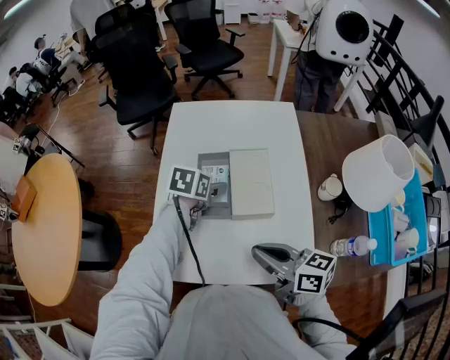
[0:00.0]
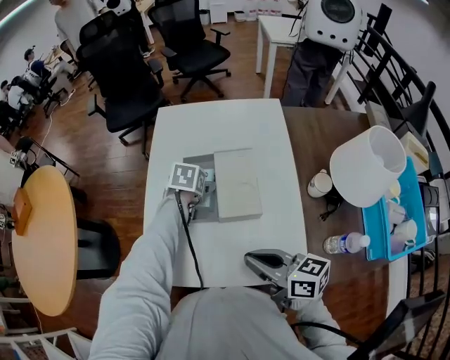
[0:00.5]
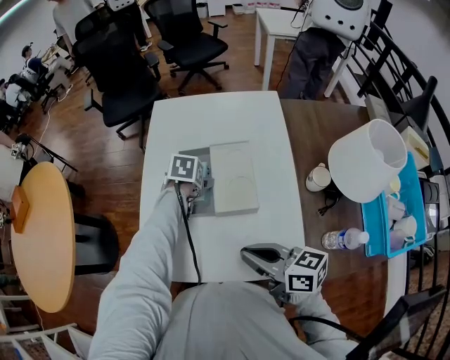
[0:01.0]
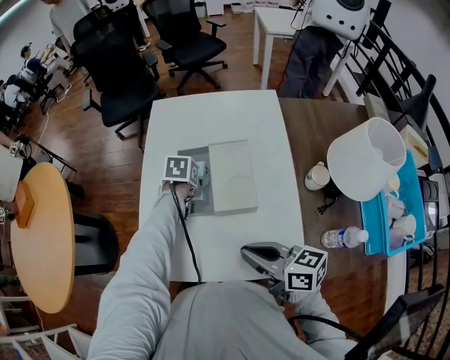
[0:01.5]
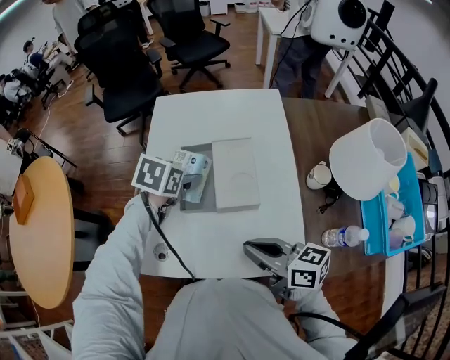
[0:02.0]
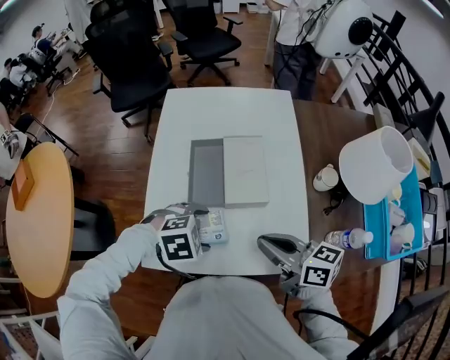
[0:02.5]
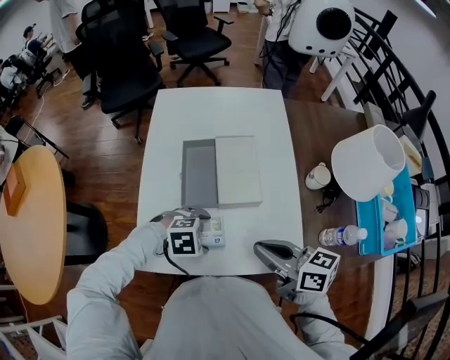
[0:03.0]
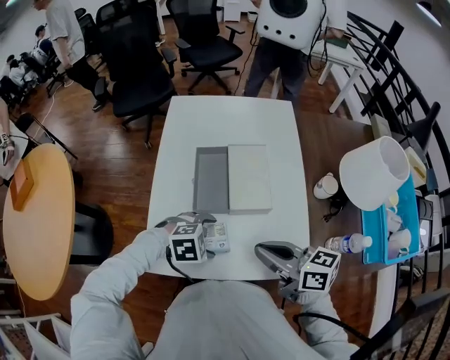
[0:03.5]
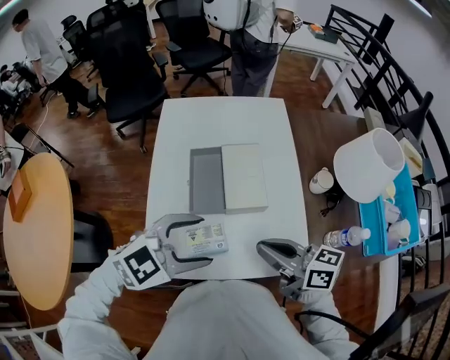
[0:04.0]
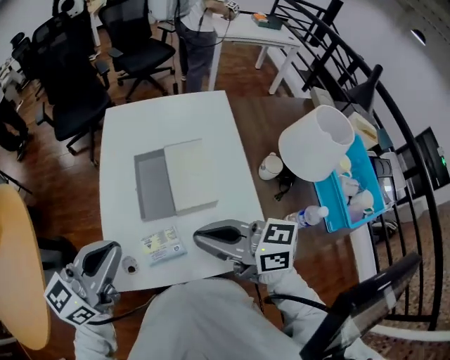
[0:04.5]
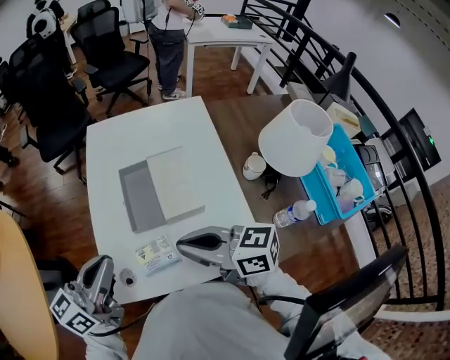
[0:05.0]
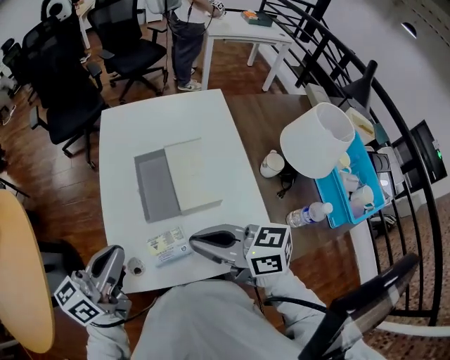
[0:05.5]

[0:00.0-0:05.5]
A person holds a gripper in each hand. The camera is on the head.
0:00.0 to 0:02.0: The left gripper heads upward, covering some 5 cm.
0:02.0 to 0:03.5: The left gripper shifts by approximately 25 cm, and twists approximately 50 degrees clockwise, seen from behind.
0:03.5 to 0:05.5: The right gripper changes place by about 10 cm; the left gripper travels upward by about 20 cm, points its fingers roughly 60 degrees further upward, and closes up.

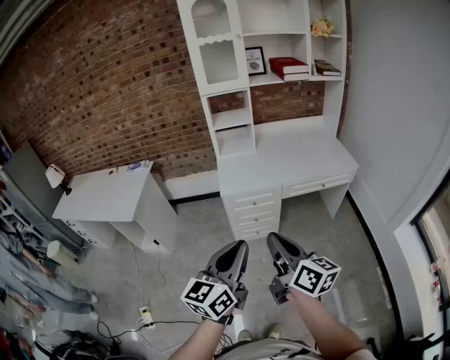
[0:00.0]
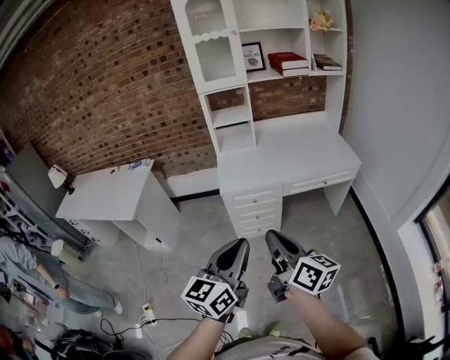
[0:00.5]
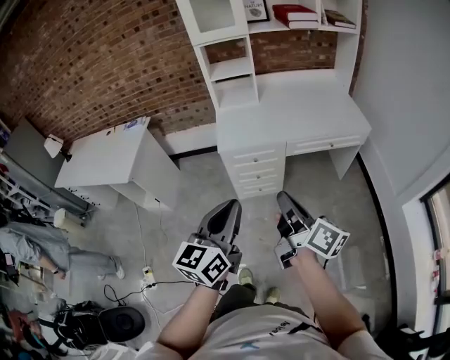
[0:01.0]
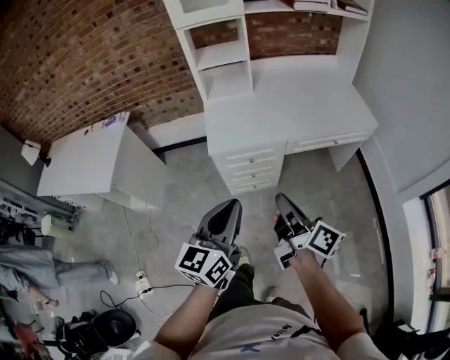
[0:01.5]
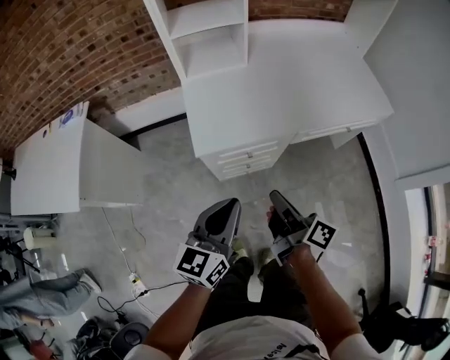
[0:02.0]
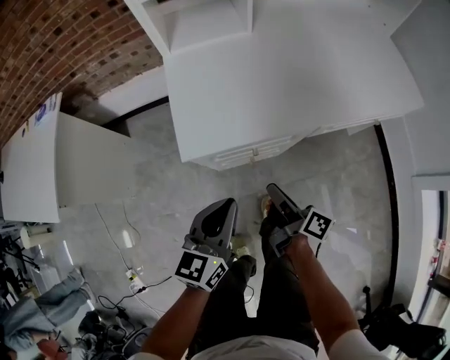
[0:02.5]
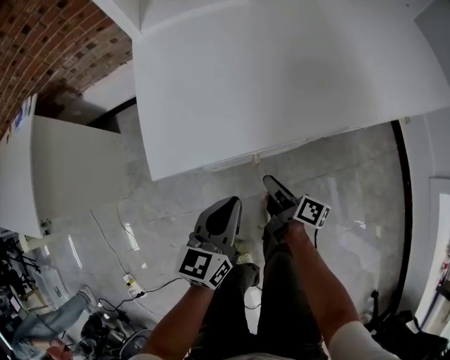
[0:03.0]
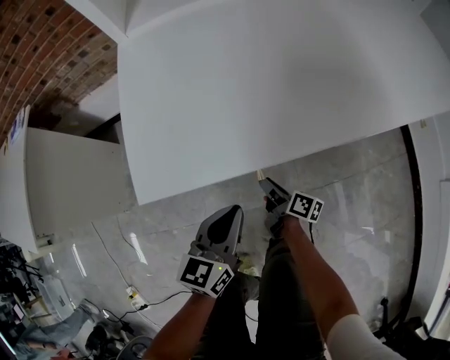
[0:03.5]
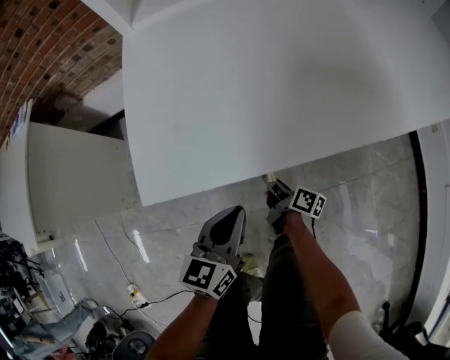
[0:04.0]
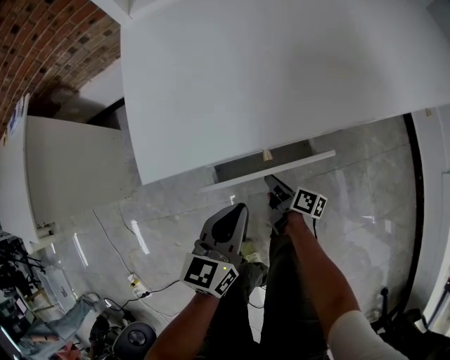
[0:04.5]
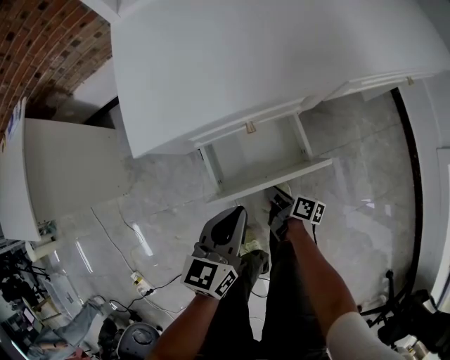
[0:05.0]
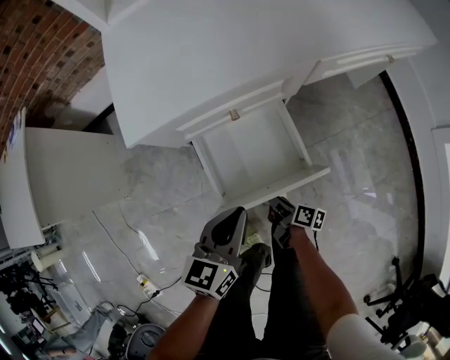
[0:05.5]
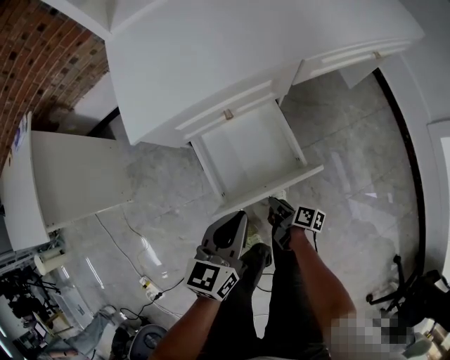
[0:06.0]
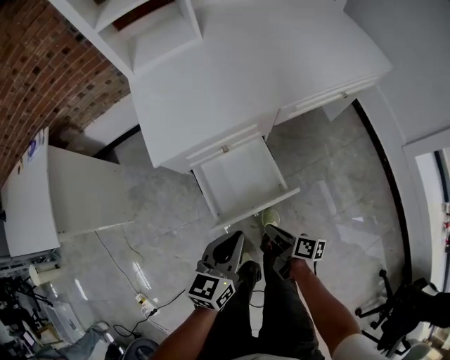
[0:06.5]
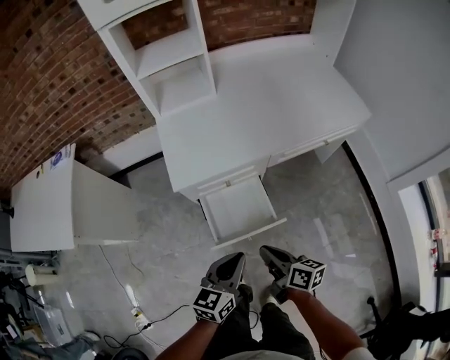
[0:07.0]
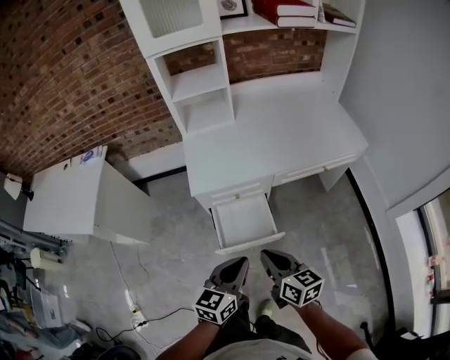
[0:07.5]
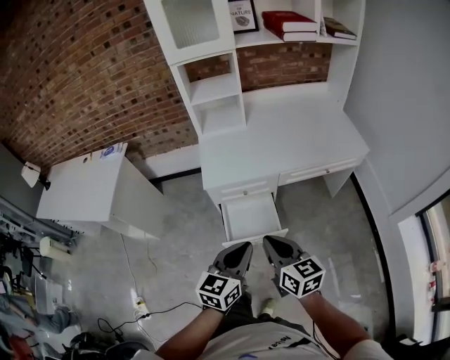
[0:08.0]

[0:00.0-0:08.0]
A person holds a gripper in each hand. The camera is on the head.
0:00.0 to 0:02.0: Both grippers travel together forward and downward, about 40 cm. The right gripper turns by about 30 degrees.
0:02.0 to 0:04.0: Both grippers move downward, about 40 cm.
0:04.0 to 0:06.0: The right gripper is displaced backward by some 25 cm; the left gripper shifts approximately 20 cm backward and upward.
0:06.0 to 0:08.0: The left gripper moves upward, about 35 cm. Meanwhile the right gripper moves upward, approximately 60 cm, and rolls counterclockwise, seen from behind, by roughly 70 degrees.

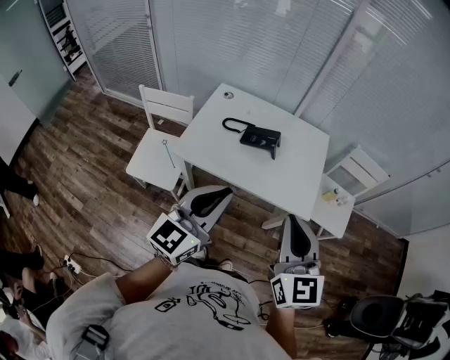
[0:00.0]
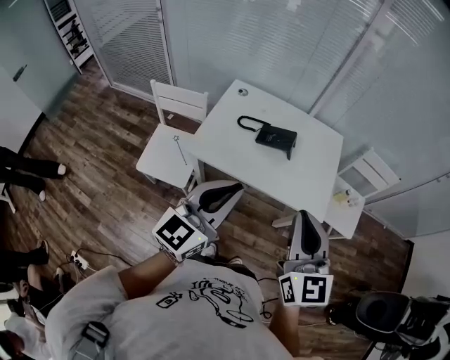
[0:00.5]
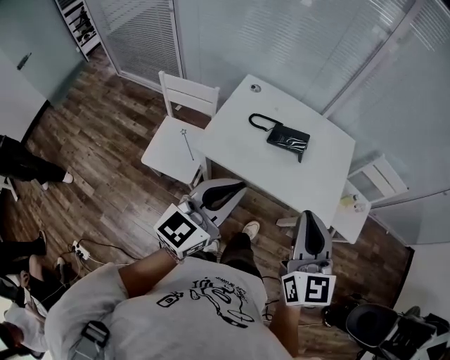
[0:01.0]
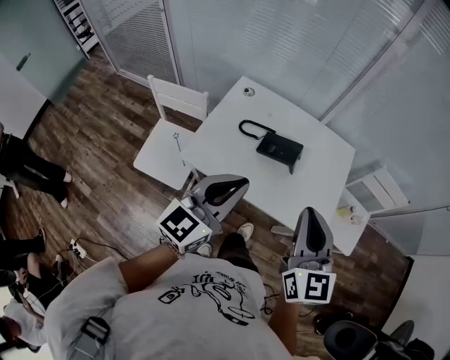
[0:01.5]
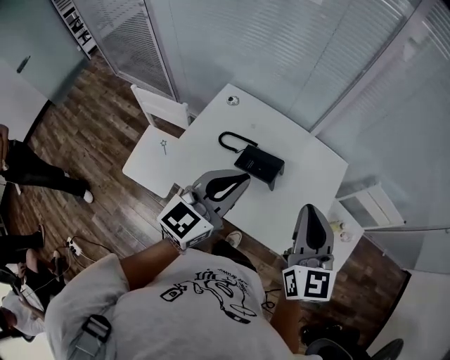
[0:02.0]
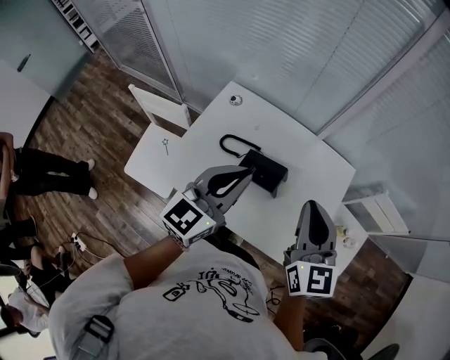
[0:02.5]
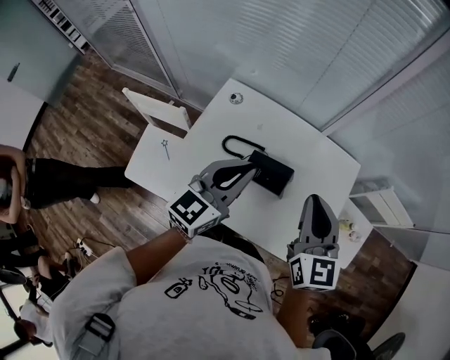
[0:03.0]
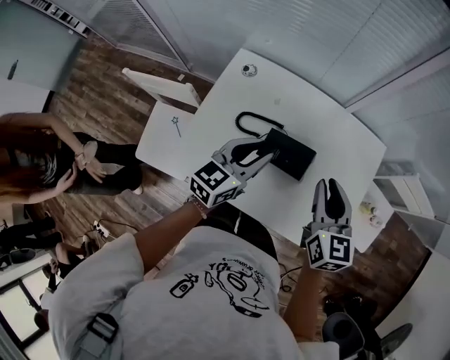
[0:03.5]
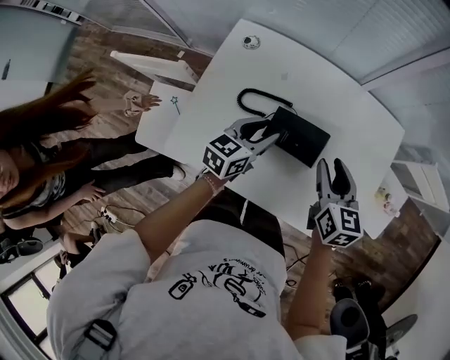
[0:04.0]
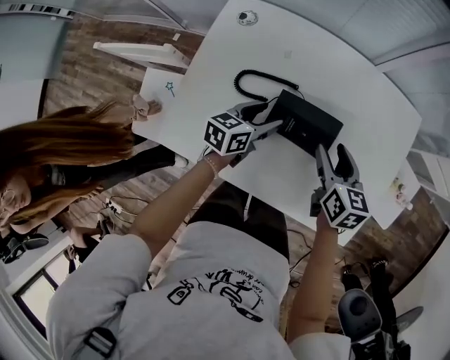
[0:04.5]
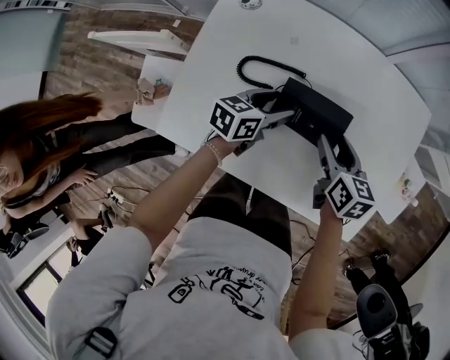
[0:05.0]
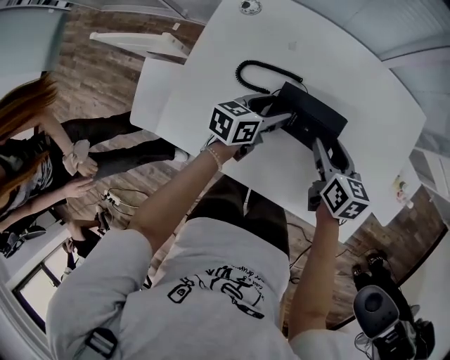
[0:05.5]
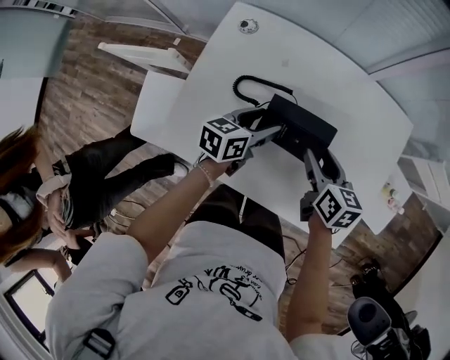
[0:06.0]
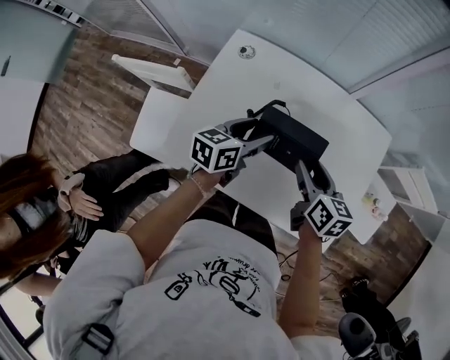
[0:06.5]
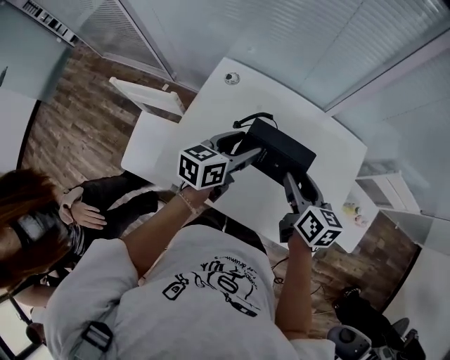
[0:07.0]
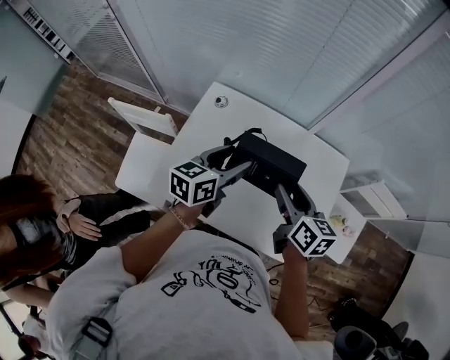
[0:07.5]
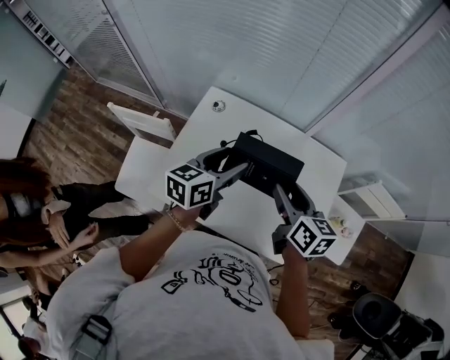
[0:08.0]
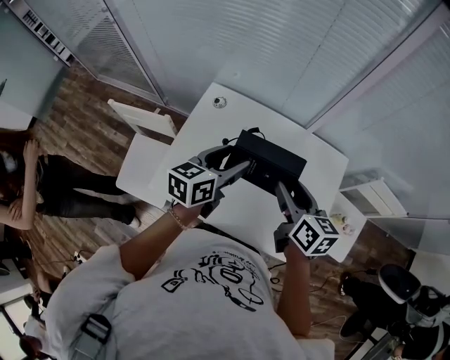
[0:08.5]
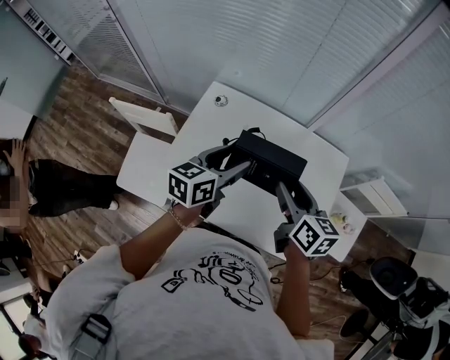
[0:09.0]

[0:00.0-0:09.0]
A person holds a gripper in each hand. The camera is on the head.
0:00.0 to 0:02.0: Both grippers travel together forward, roughly 30 cm.
0:02.0 to 0:04.5: Both grippers move downward and forward, some 40 cm. The left gripper turns by roughly 40 degrees, and opens up; the right gripper angles its fingers downward, by some 30 degrees, and opens.
0:04.5 to 0:07.0: Both grippers move upward, roughly 20 cm.
0:07.0 to 0:09.0: The two grippers go approximately 5 cm upward.

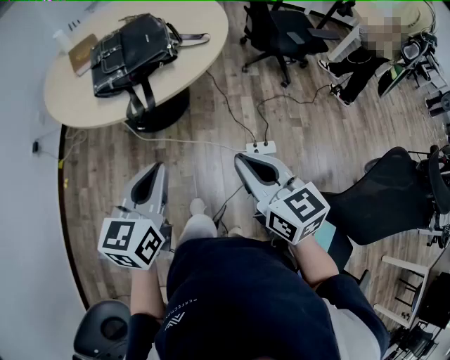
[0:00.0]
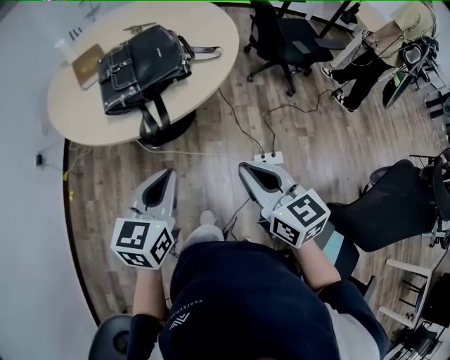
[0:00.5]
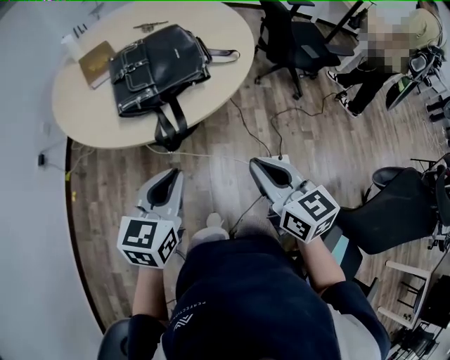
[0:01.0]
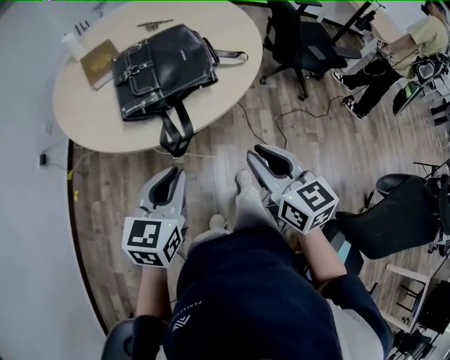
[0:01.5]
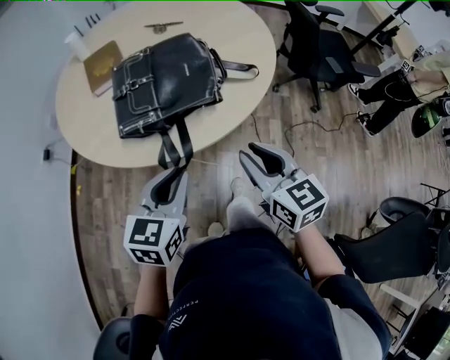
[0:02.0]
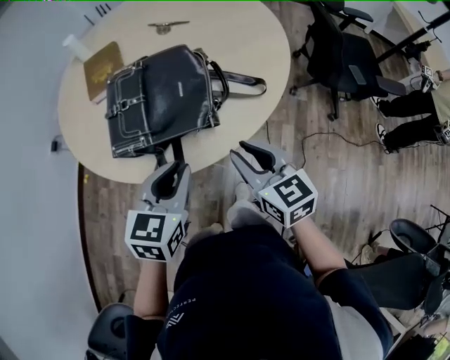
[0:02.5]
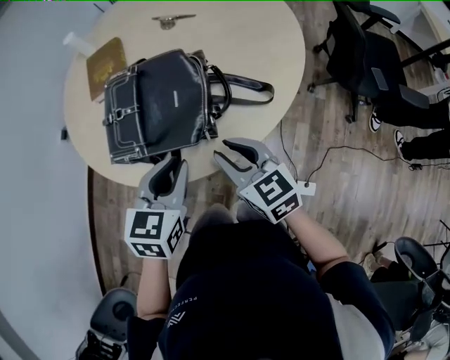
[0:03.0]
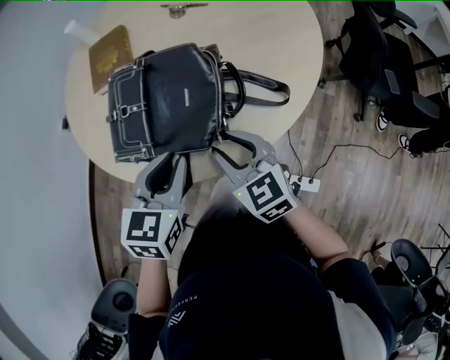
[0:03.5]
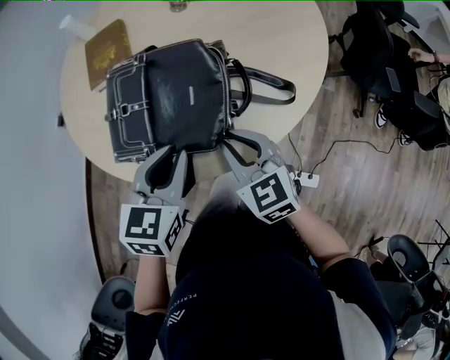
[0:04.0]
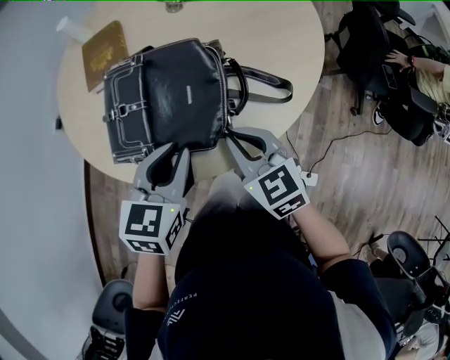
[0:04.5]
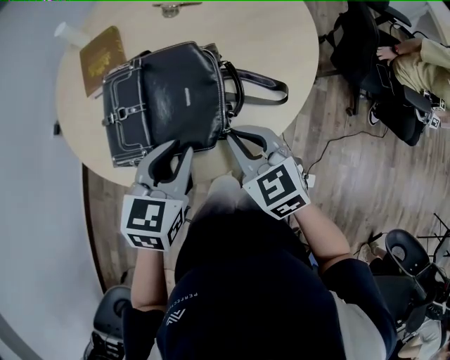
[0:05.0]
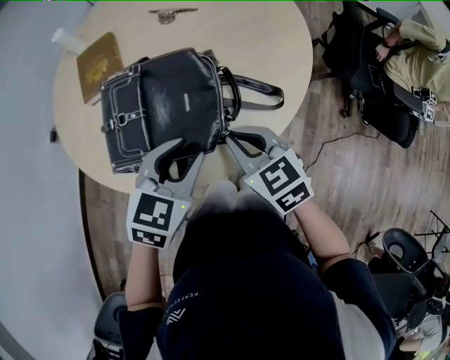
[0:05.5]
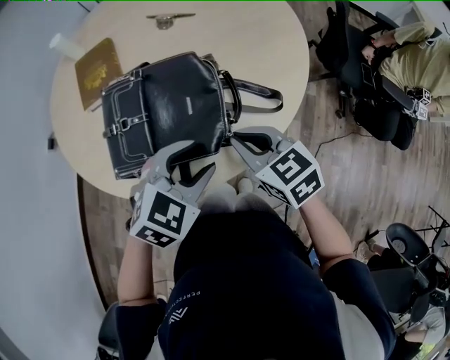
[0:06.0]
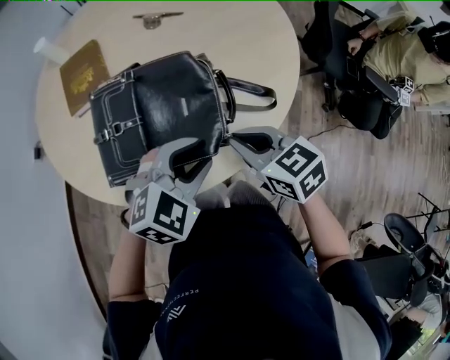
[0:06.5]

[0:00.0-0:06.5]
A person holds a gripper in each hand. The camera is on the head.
0:00.0 to 0:02.0: Both grippers travel together forward, roughly 20 cm. The right gripper opens its fingers.
0:02.0 to 0:04.5: The right gripper is displaced forward by some 20 cm, changes its angle by about 20 degrees, and closes up; the left gripper goes approximately 20 cm forward and to the right.
0:04.5 to 0:06.5: The left gripper shifts roughly 5 cm to the right, rotates about 50 degrees, and opens its fingers.
